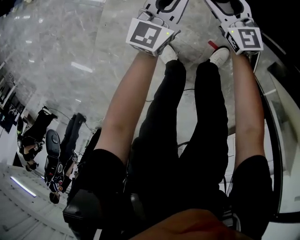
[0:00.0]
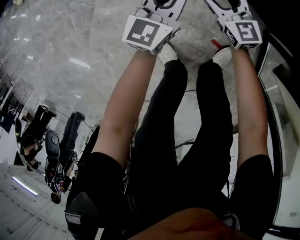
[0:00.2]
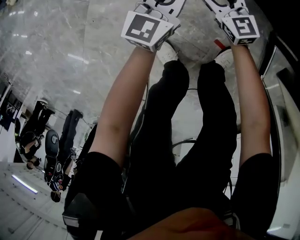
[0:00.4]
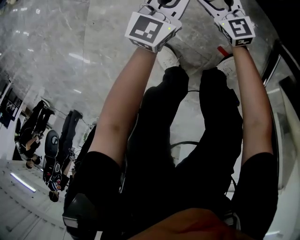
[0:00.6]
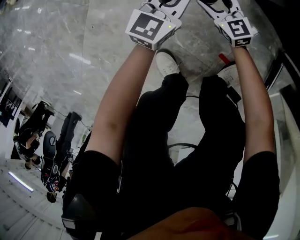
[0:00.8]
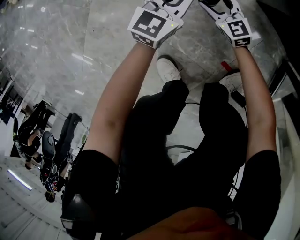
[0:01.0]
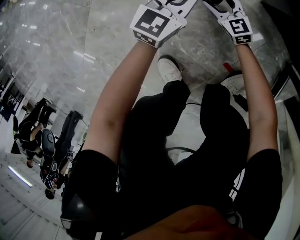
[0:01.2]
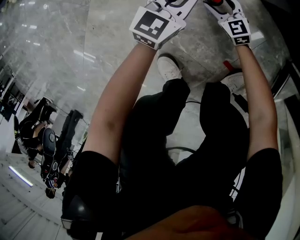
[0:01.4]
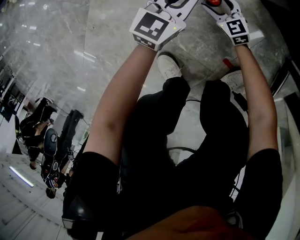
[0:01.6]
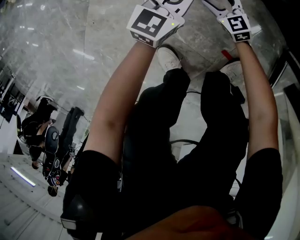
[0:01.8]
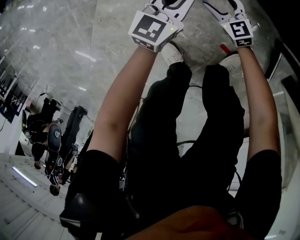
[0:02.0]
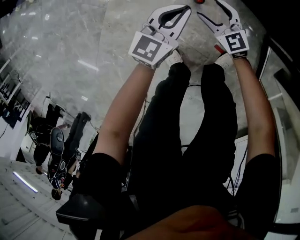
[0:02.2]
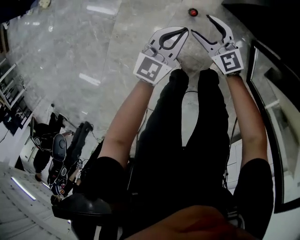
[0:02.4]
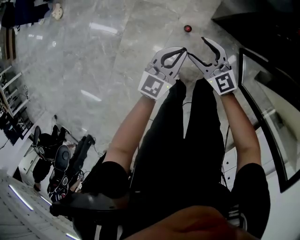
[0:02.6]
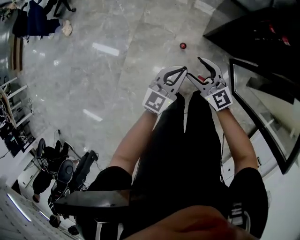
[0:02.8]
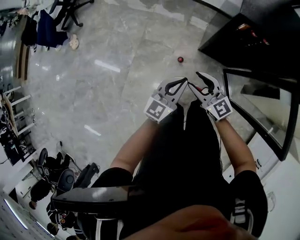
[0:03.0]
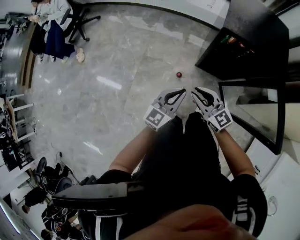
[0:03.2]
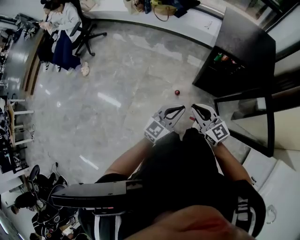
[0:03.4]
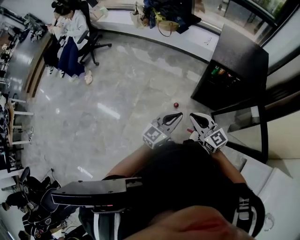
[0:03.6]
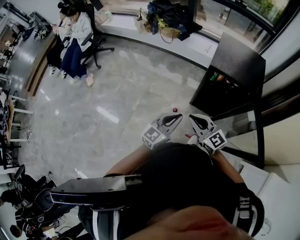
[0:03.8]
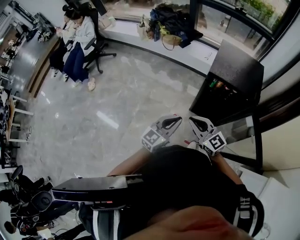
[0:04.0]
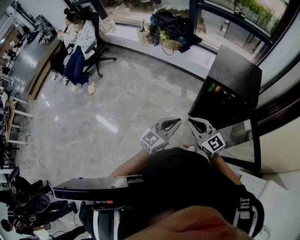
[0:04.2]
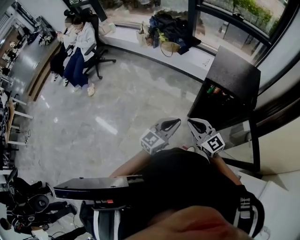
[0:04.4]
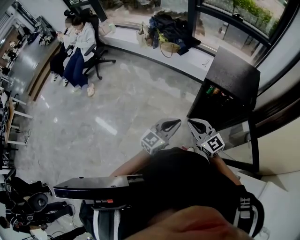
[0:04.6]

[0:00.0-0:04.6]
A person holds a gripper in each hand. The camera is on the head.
0.0 to 1.6 s: The grippers both shift downward by roughly 30 cm. The right gripper swivels some 20 degrees.
1.6 to 3.0 s: The two grippers go about 70 cm upward. The right gripper changes its angle by about 30 degrees.
3.0 to 4.6 s: The grippers both shift upward by about 20 cm. The right gripper closes up.

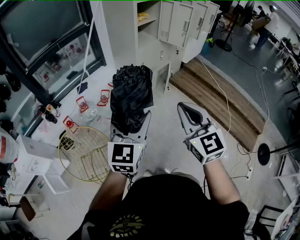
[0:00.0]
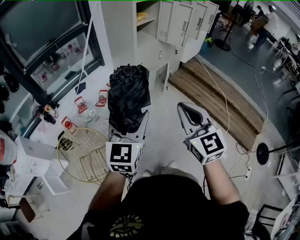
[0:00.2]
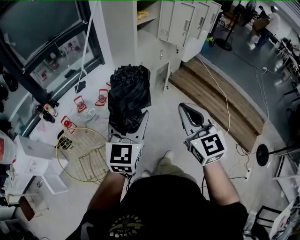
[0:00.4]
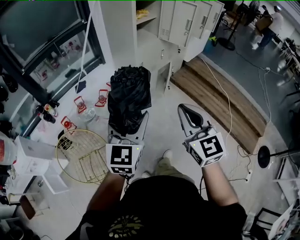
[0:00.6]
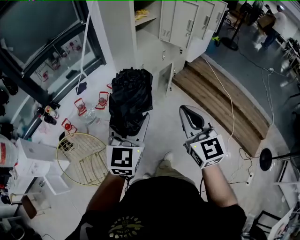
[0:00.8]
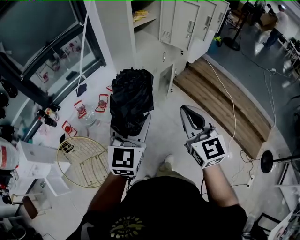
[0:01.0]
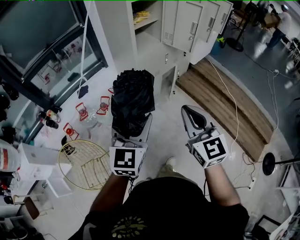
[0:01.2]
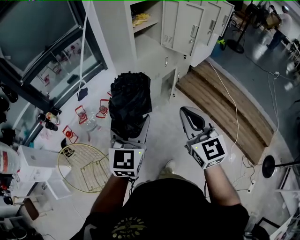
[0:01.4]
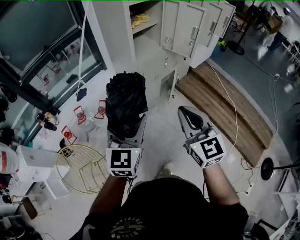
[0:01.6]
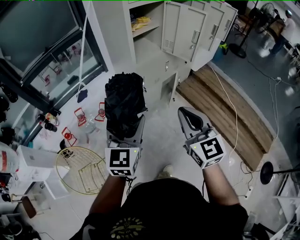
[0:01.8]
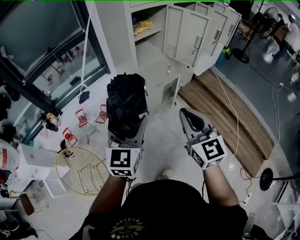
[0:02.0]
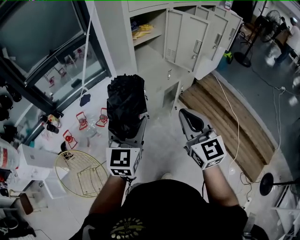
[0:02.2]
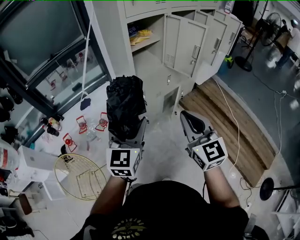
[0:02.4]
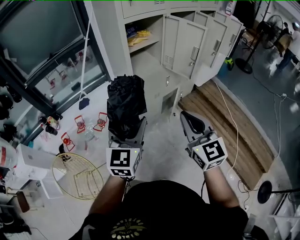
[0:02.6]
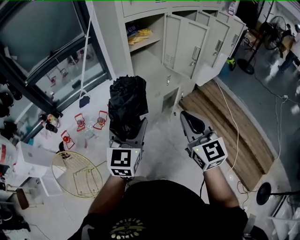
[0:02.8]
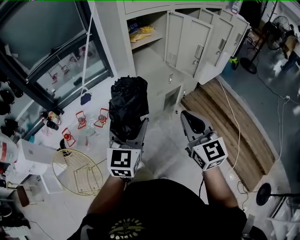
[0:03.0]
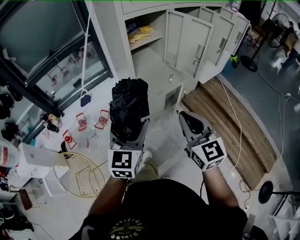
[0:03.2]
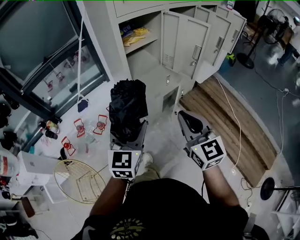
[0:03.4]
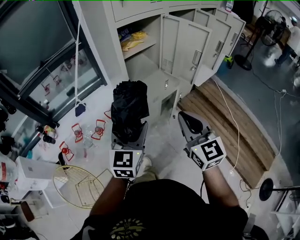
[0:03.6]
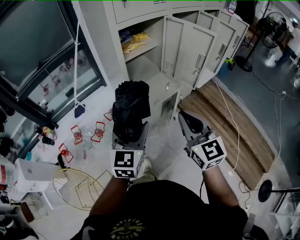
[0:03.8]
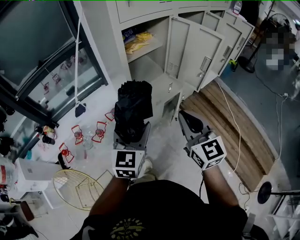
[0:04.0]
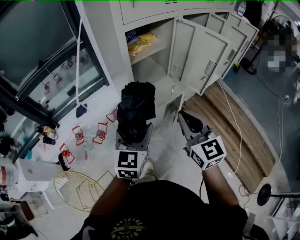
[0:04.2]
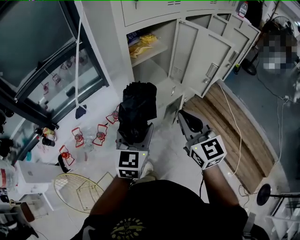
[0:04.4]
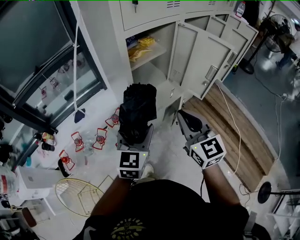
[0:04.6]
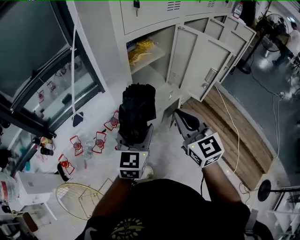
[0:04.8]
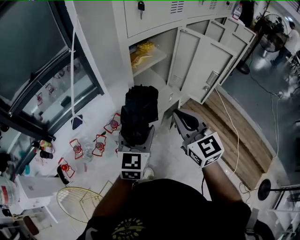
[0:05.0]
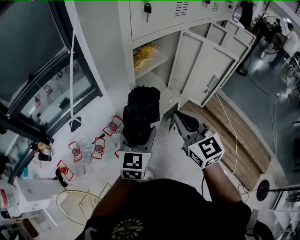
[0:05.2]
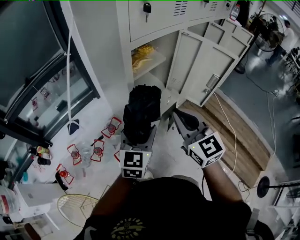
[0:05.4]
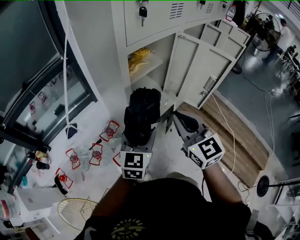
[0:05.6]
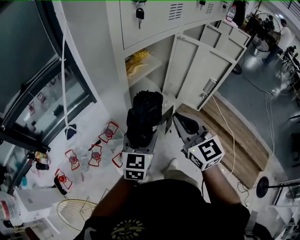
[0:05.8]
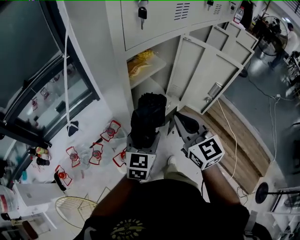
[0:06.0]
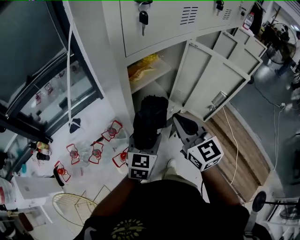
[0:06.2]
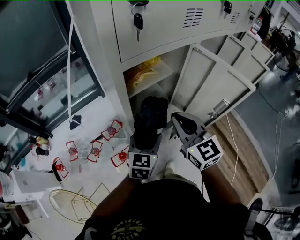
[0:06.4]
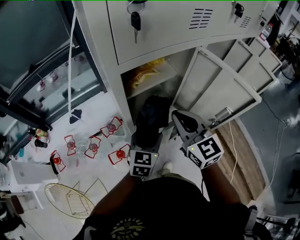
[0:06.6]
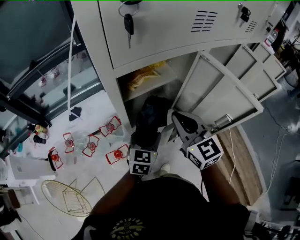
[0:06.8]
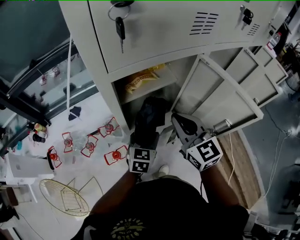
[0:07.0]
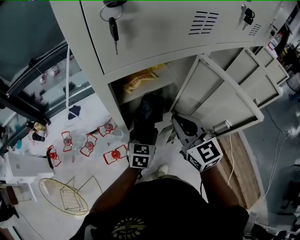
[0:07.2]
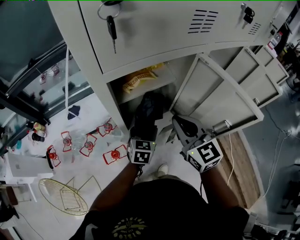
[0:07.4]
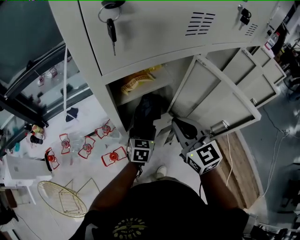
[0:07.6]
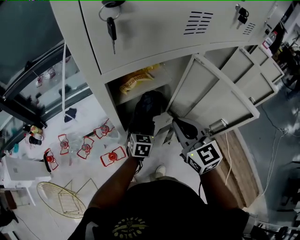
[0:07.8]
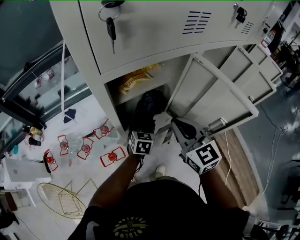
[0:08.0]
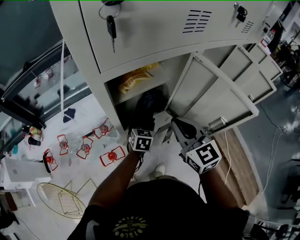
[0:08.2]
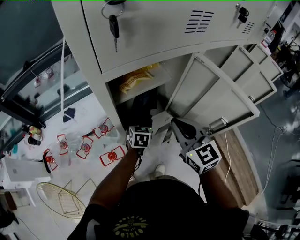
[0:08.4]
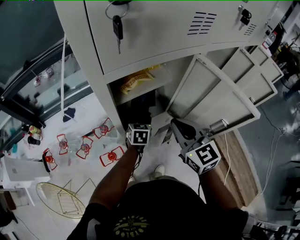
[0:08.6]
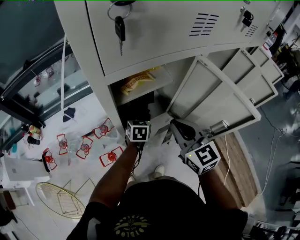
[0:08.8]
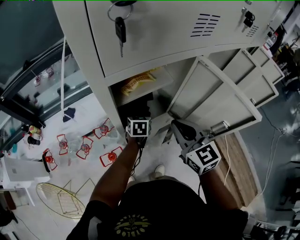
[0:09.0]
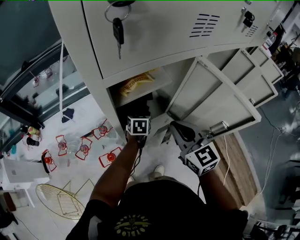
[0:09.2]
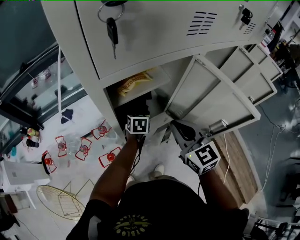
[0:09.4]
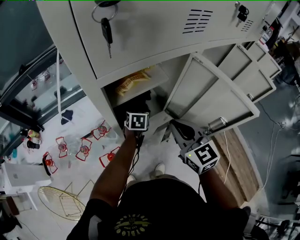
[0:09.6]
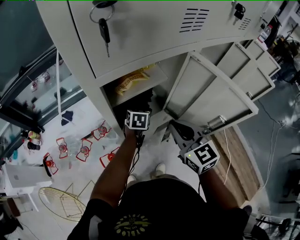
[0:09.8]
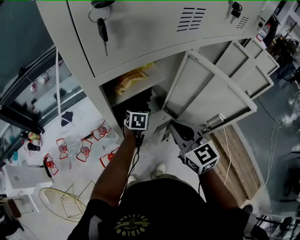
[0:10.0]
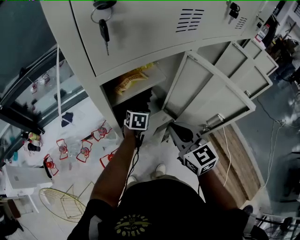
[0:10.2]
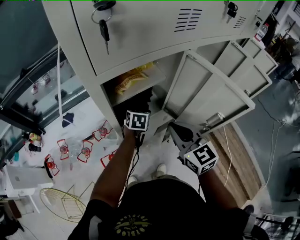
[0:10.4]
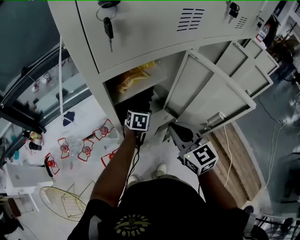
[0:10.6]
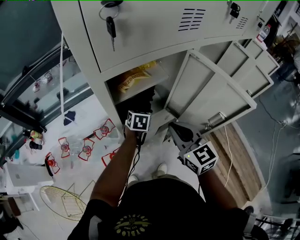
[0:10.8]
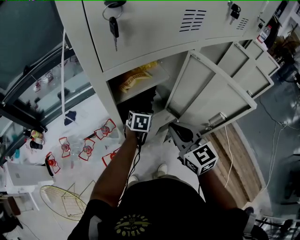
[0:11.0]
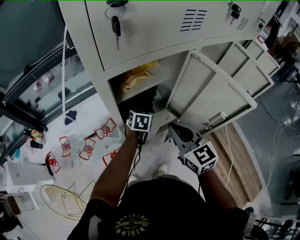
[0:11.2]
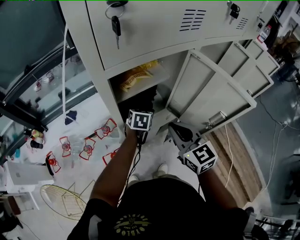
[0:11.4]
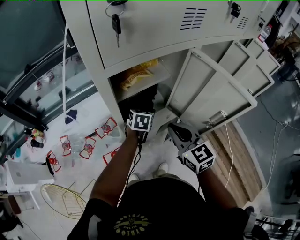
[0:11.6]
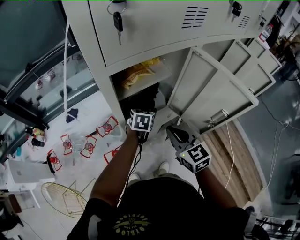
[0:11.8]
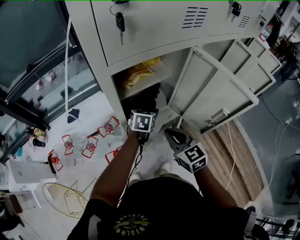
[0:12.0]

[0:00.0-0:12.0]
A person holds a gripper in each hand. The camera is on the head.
0.0 to 1.6 s: The two grippers go some 20 cm forward.
1.6 to 3.0 s: Both grippers move forward and to the right, some 15 cm.
3.0 to 4.4 s: Both grippers move forward, some 20 cm.
4.4 to 6.0 s: The grippers both shift forward by some 10 cm.
6.0 to 7.6 s: The right gripper heads forward and to the right, covering about 15 cm; the left gripper shifts about 20 cm forward, downward and to the right, and turns by approximately 20 degrees.
7.6 to 9.0 s: The left gripper travels forward by about 10 cm.
9.0 to 10.4 s: The grippers make only small movements.
10.4 to 12.0 s: The right gripper goes some 10 cm downward.

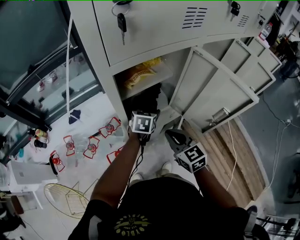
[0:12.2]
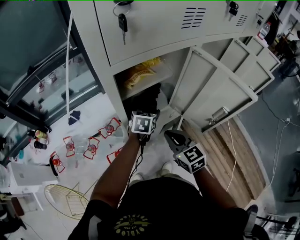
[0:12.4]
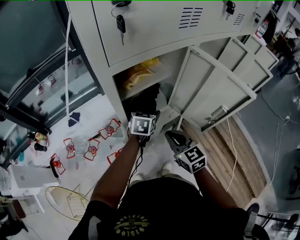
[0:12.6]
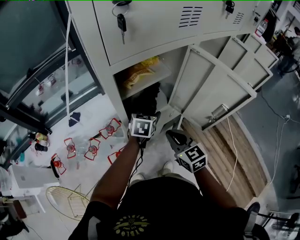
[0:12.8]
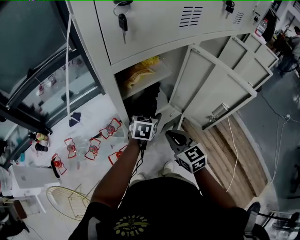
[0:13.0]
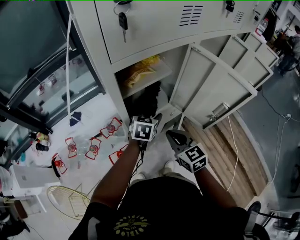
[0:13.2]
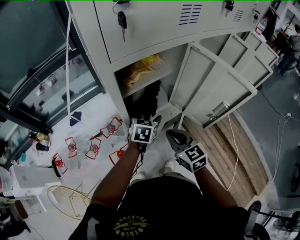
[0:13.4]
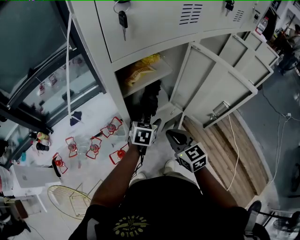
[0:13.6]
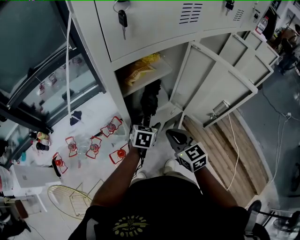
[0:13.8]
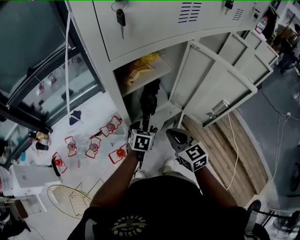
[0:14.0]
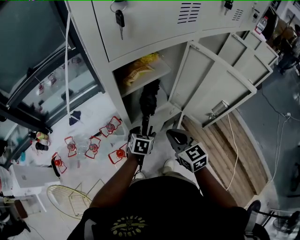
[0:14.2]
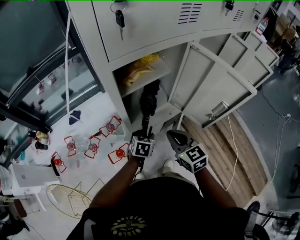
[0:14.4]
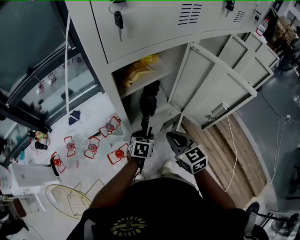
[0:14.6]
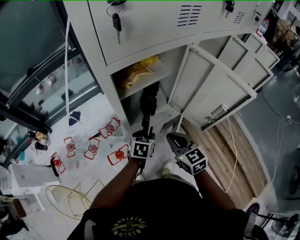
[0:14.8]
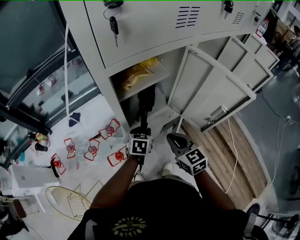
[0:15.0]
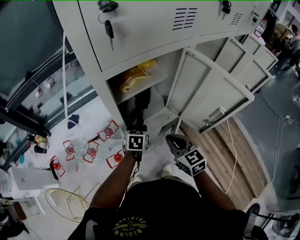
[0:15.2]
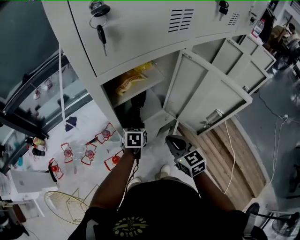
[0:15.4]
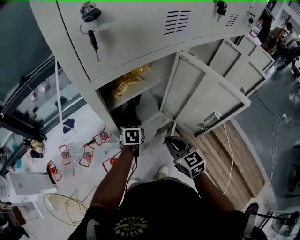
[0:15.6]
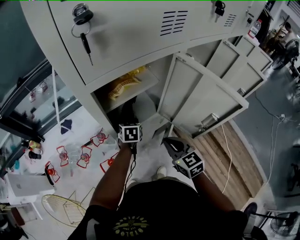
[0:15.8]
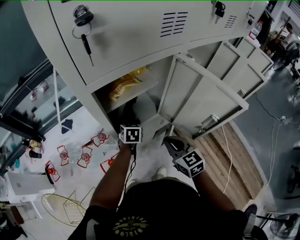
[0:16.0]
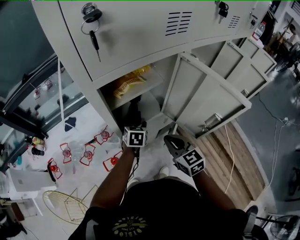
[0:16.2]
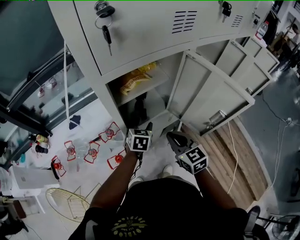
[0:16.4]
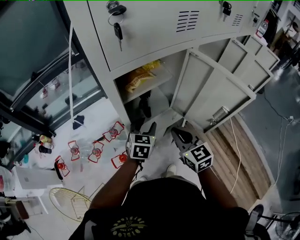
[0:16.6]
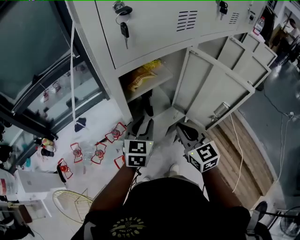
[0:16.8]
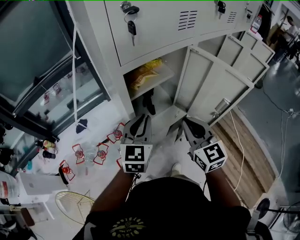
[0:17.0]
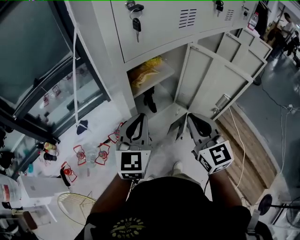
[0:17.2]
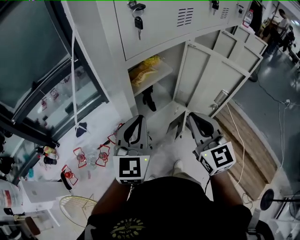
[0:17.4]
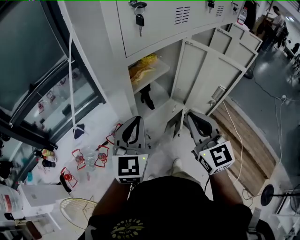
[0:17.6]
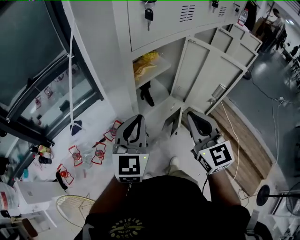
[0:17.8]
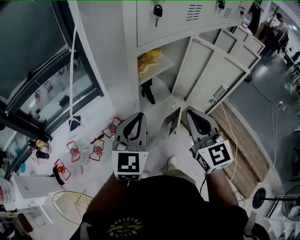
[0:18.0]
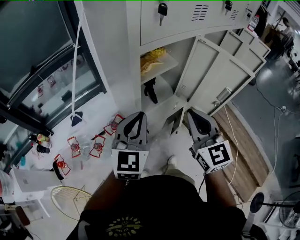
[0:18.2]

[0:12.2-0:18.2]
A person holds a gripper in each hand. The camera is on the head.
12.2 to 13.8 s: The left gripper travels backward by roughly 5 cm.
13.8 to 15.2 s: The left gripper closes its fingers.
15.2 to 16.6 s: The left gripper shifts about 10 cm upward.
16.6 to 18.2 s: The right gripper goes about 15 cm upward and backward, and changes its angle by approximately 20 degrees. Meanwhile the left gripper is displaced upward, backward and to the left by approximately 20 cm, swivels about 30 degrees, and closes.

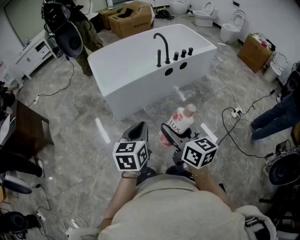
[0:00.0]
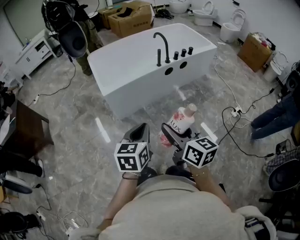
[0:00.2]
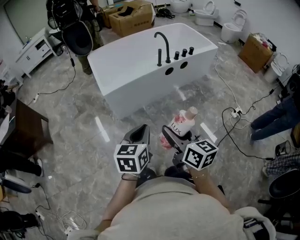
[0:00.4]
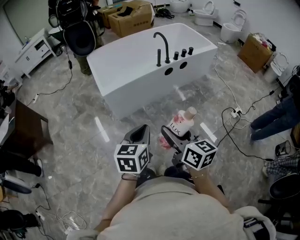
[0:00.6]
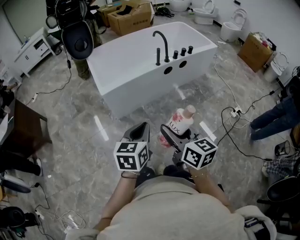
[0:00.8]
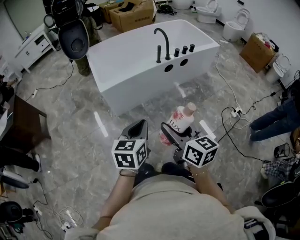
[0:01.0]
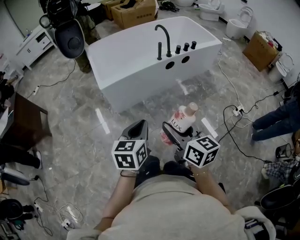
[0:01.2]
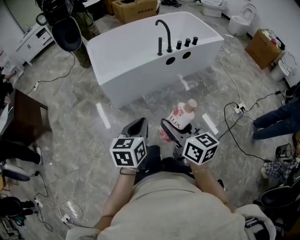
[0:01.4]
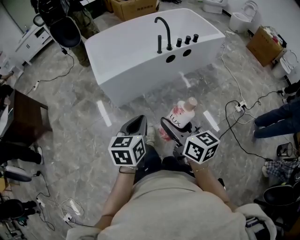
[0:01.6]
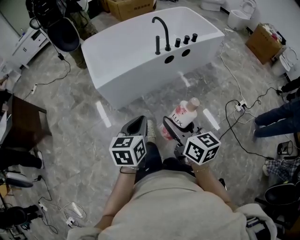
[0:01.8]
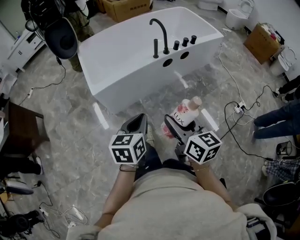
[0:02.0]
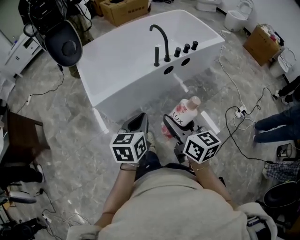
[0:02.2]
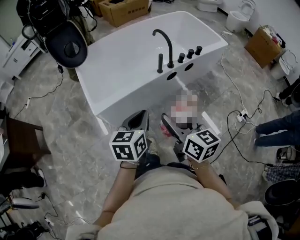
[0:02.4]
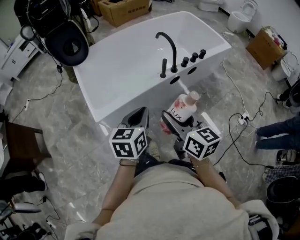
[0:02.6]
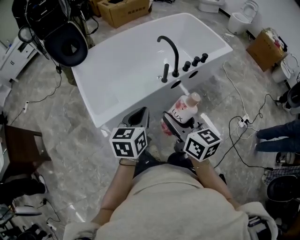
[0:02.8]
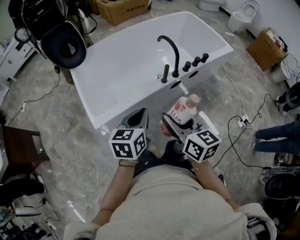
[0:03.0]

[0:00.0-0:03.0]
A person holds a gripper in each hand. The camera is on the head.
0.0 to 1.6 s: The left gripper travels to the right and forward by roughly 10 cm. The right gripper heads forward and to the right, covering approximately 10 cm.
1.6 to 3.0 s: The pair of grippers is taken forward, roughly 40 cm.
